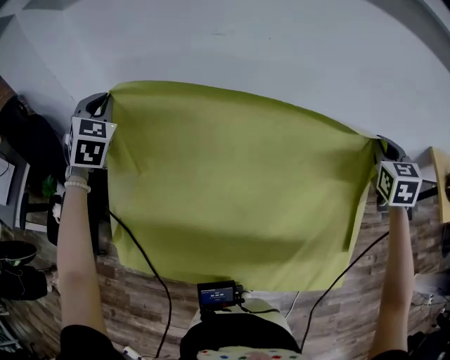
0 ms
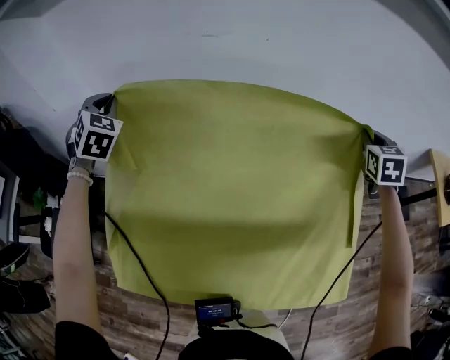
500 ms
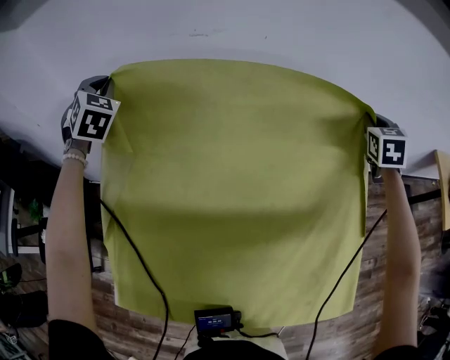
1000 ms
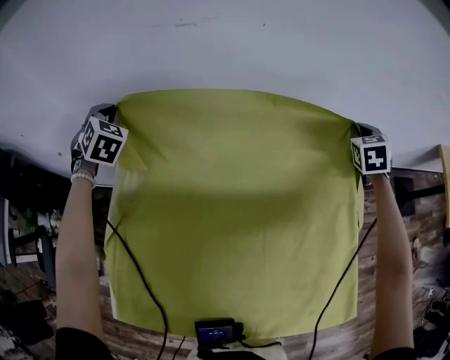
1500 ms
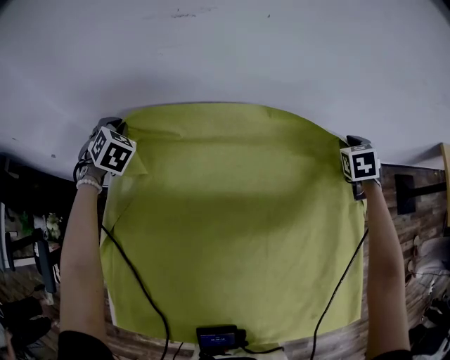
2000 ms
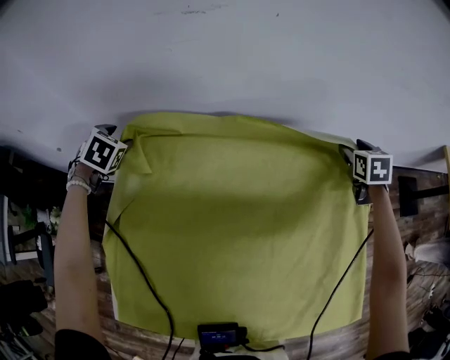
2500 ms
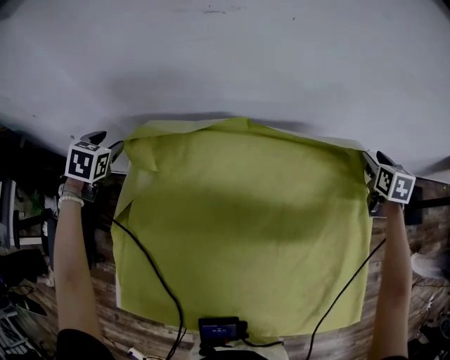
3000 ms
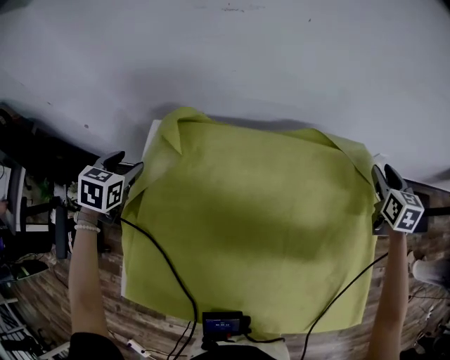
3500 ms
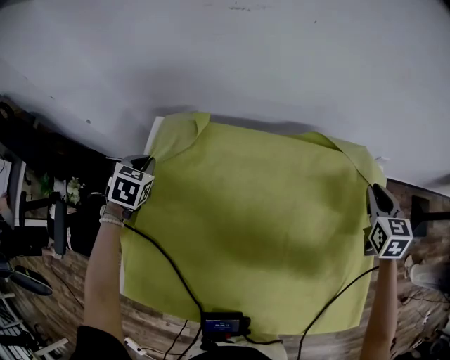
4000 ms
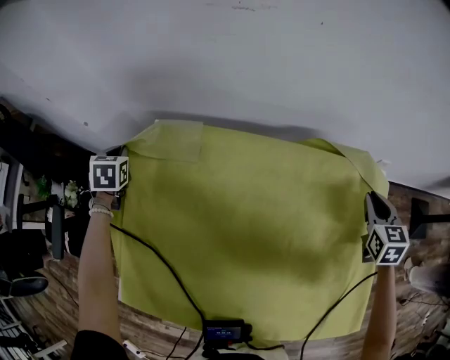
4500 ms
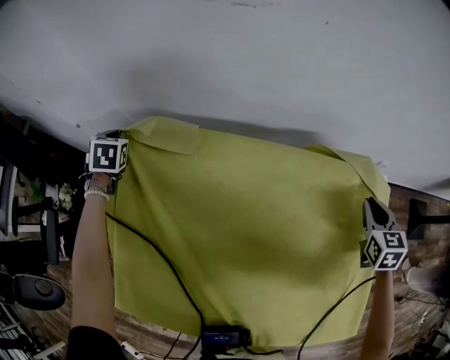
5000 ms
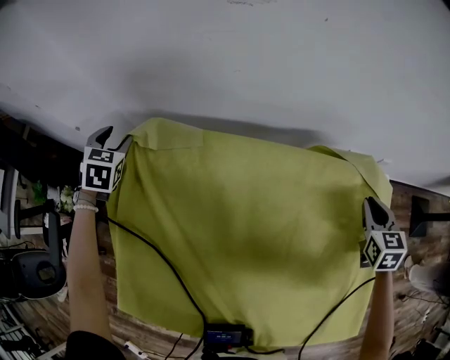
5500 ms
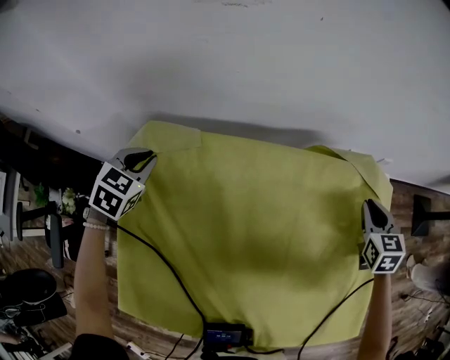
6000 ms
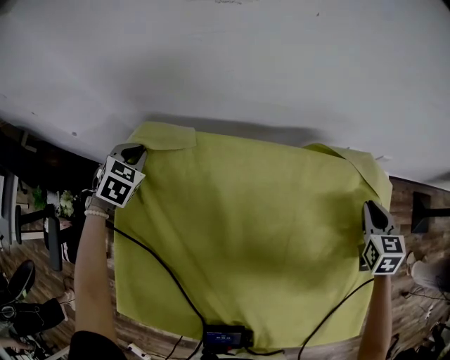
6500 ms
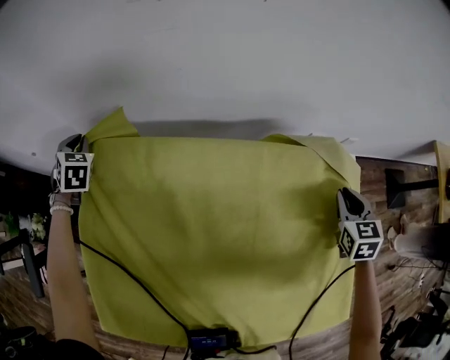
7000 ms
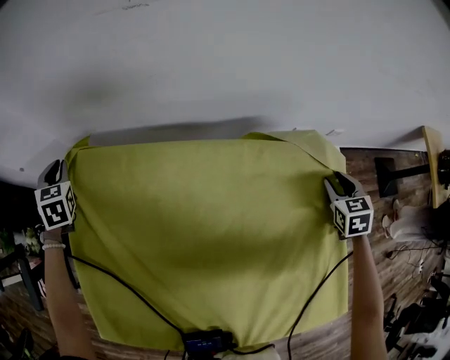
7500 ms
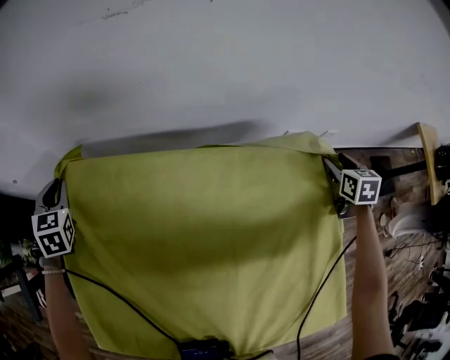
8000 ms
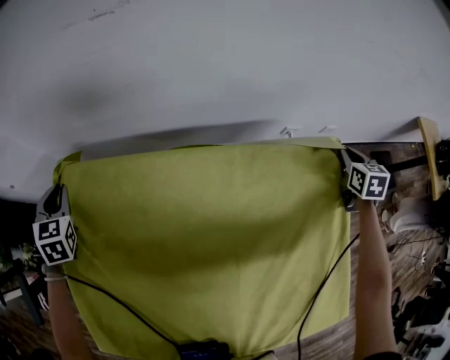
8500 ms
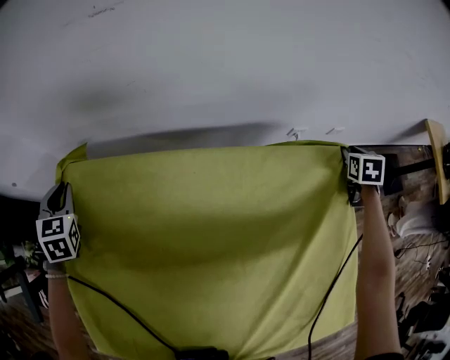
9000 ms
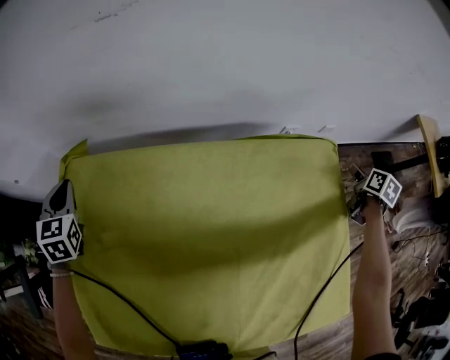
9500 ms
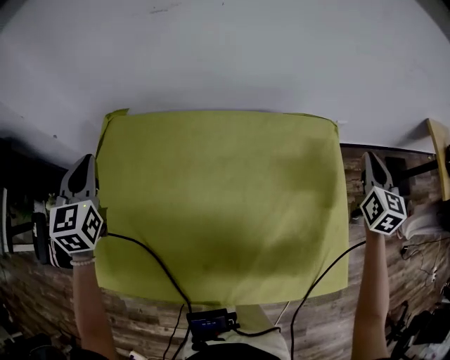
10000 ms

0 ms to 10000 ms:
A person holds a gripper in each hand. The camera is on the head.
0 ms to 2000 ms: Both grippers travel together downward and forward, roughly 30 cm. The right gripper swivels approximately 20 degrees; the left gripper swivels roughly 30 degrees.
2000 ms to 4000 ms: The two grippers go approximately 15 cm backward. The right gripper swivels some 20 degrees, and opens and closes again. Meanwhile the left gripper swivels roughly 30 degrees, and opens, then closes again.
4000 ms to 6000 ms: The left gripper travels to the left and back again, some 10 cm each way, and opens and closes again.
6000 ms to 8000 ms: The right gripper moves to the right and forward, about 15 cm, and opens up, while the left gripper is displaced to the left by roughly 5 cm, and changes its angle by about 30 degrees.
8000 ms to 10000 ms: The left gripper moves upward, backward and to the right, some 25 cm, and swivels approximately 20 degrees, while the right gripper travels upward and backward by roughly 20 cm, turns by about 30 degrees, and closes its fingers.

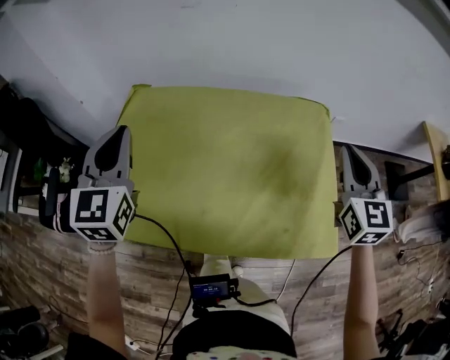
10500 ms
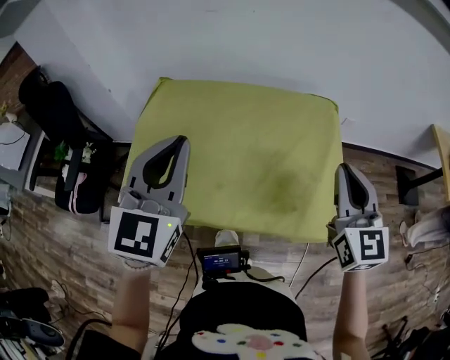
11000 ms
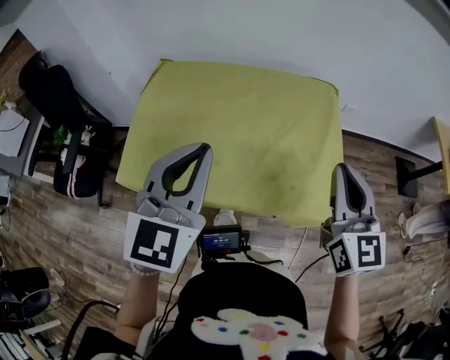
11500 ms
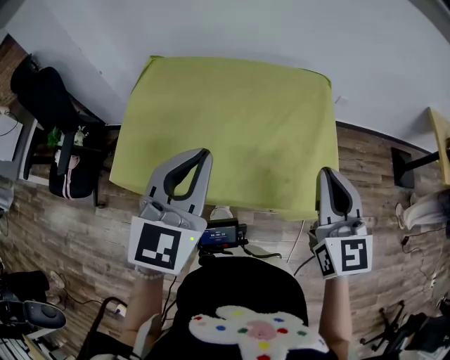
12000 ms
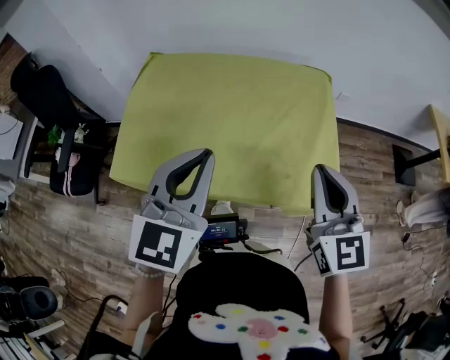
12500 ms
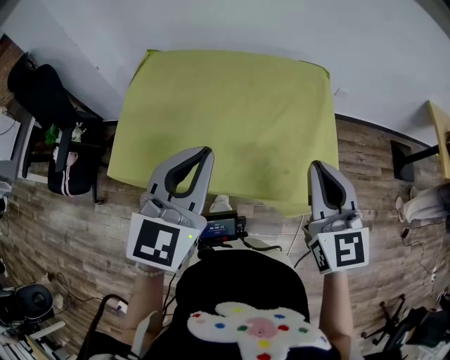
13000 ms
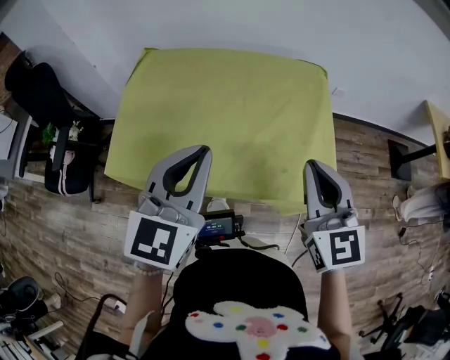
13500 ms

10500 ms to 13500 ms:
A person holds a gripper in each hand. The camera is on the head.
10500 ms to 12000 ms: The right gripper heads backward, covering approximately 20 cm. The left gripper shifts approximately 25 cm backward and to the right.
12000 ms to 13500 ms: The grippers stay close to where they were, moving slightly.

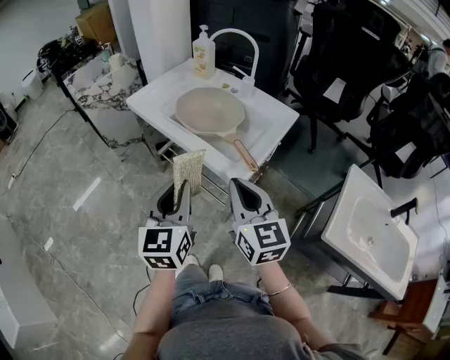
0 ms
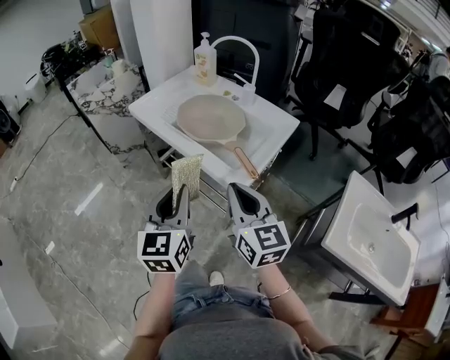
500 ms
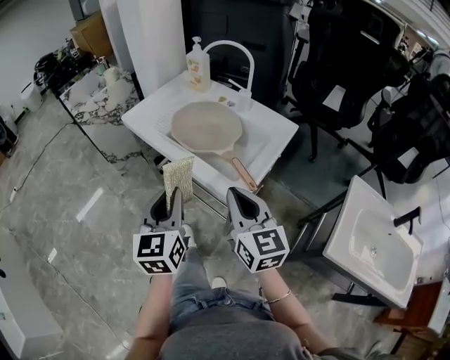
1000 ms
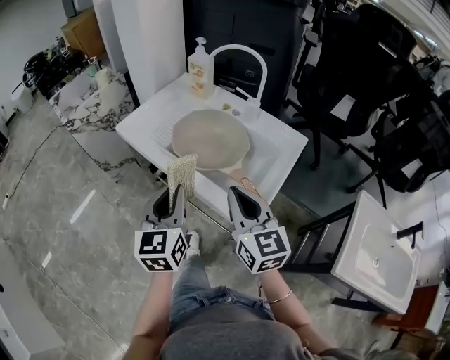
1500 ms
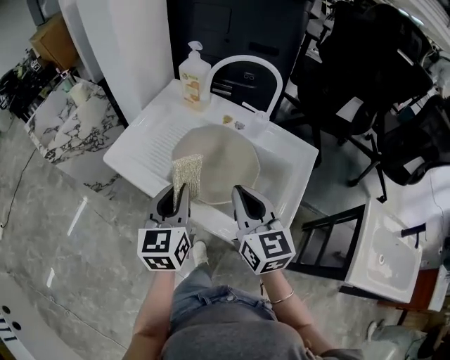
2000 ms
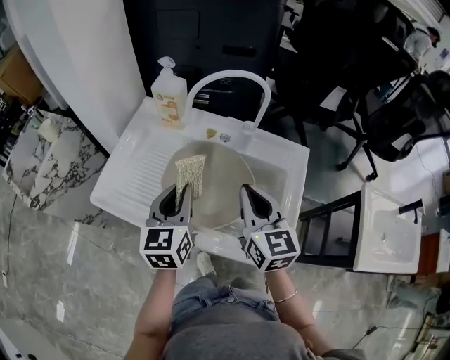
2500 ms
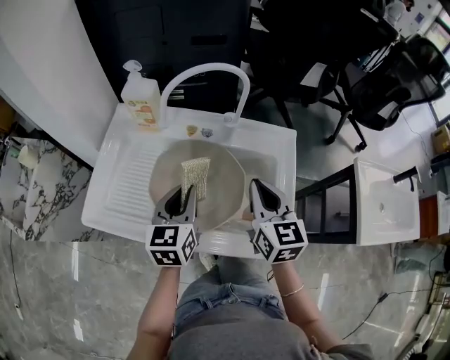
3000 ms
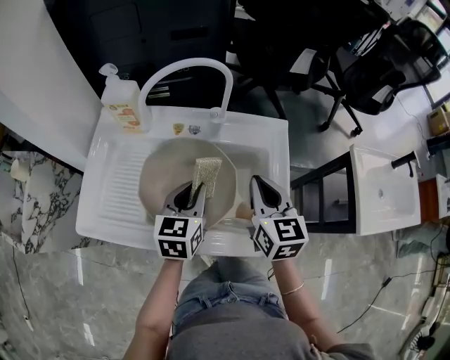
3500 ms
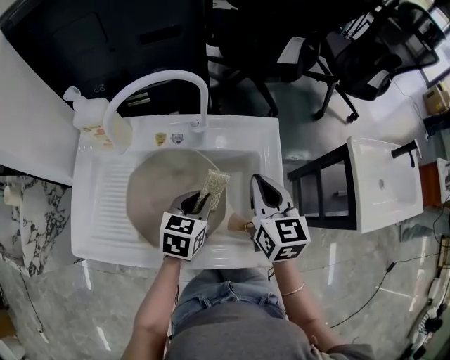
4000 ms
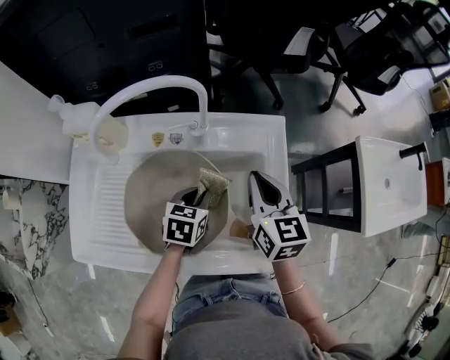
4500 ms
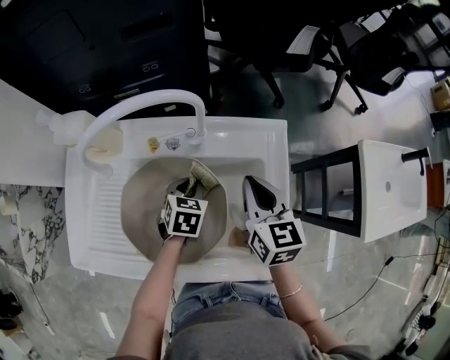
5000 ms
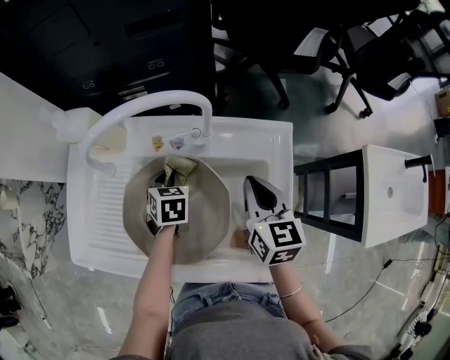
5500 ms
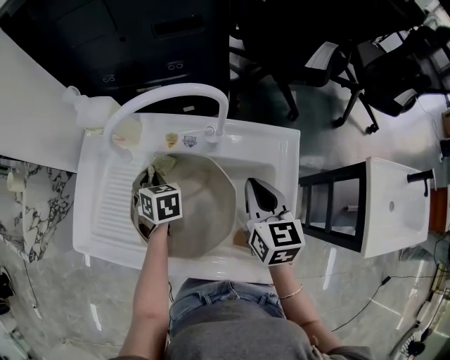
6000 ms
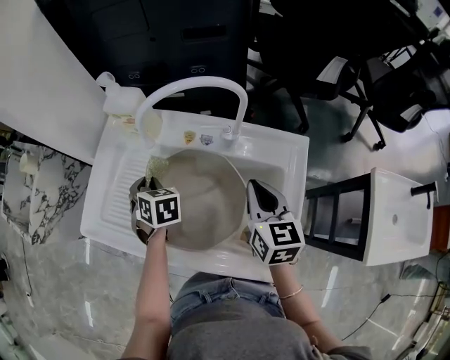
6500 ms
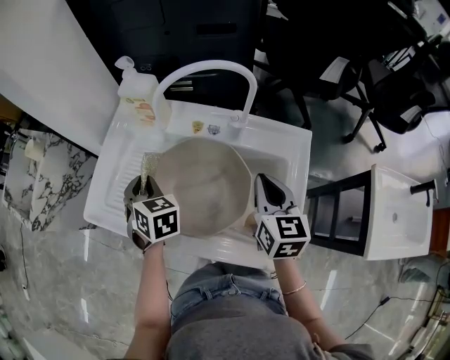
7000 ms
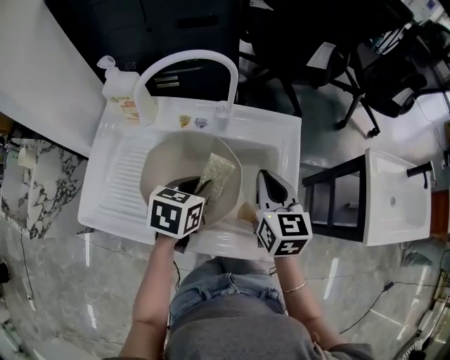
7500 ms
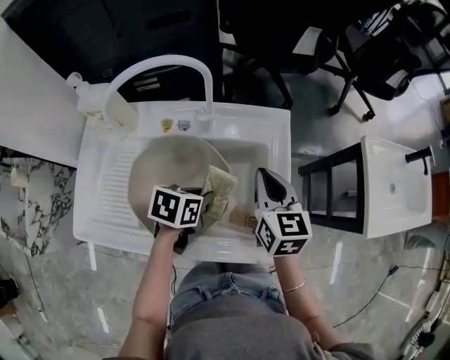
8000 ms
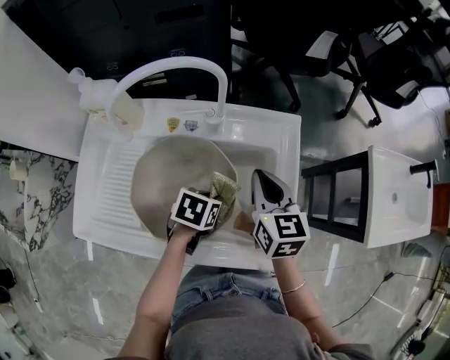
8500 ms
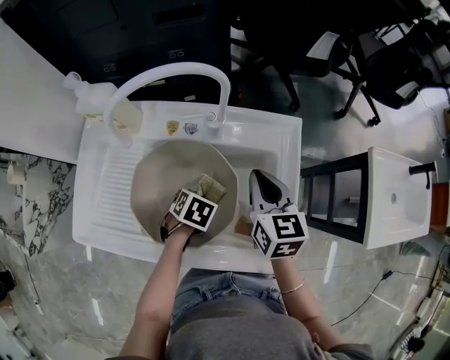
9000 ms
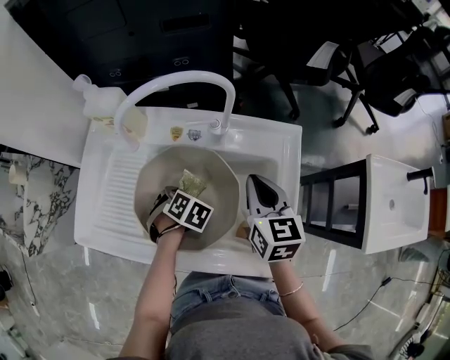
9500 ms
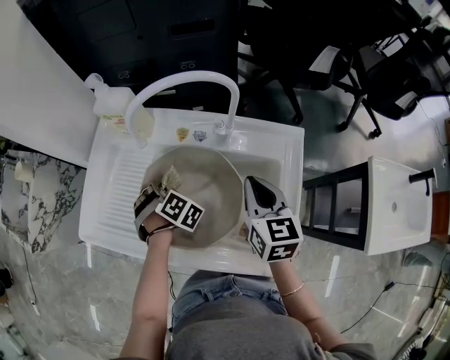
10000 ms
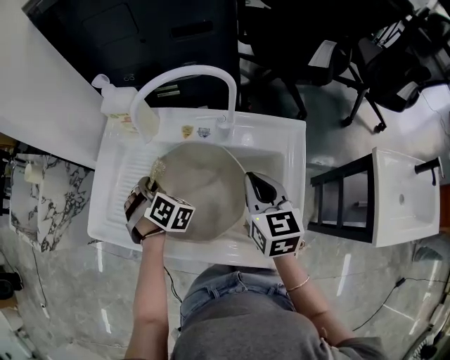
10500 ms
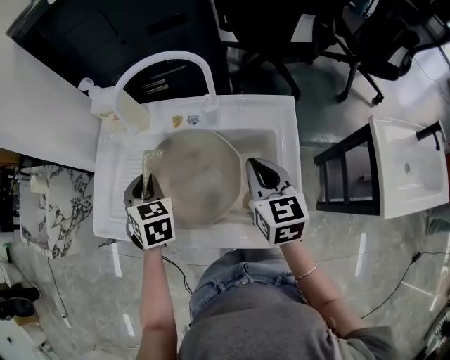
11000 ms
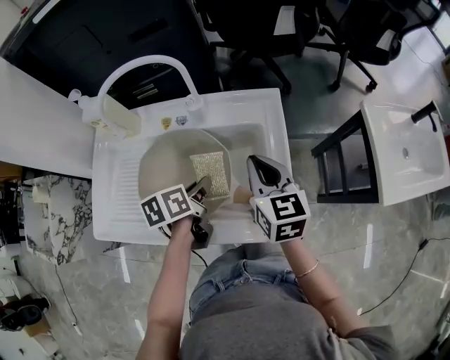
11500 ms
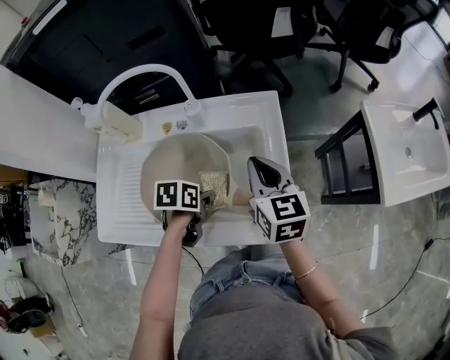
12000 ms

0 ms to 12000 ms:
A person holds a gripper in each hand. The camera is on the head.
0 ms to 2000 ms: The grippers both shift forward by about 30 cm.
2000 ms to 4000 ms: The left gripper ends up roughly 25 cm from where it was, and changes its angle by roughly 50 degrees; the right gripper ends up approximately 20 cm from where it was, and turns by some 40 degrees.
4000 ms to 6000 ms: The left gripper shifts by some 20 cm, and turns by some 50 degrees. The right gripper changes place by roughly 5 cm.
6000 ms to 8000 ms: The right gripper ends up approximately 5 cm from where it was. The left gripper travels upward and back again, some 10 cm each way, and rotates some 60 degrees.
8000 ms to 10000 ms: The left gripper ends up some 20 cm from where it was, and changes its angle by roughly 70 degrees. The right gripper shifts by some 5 cm.
10000 ms to 12000 ms: The right gripper ends up about 10 cm from where it was. Meanwhile the left gripper goes upward and returns, approximately 10 cm each way, and turns by about 70 degrees.

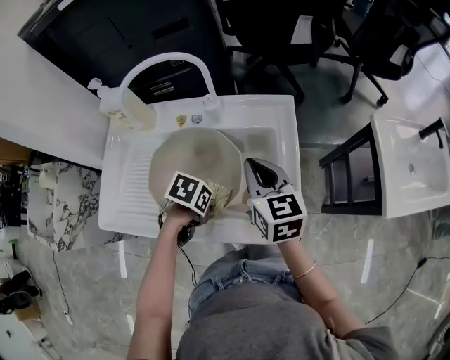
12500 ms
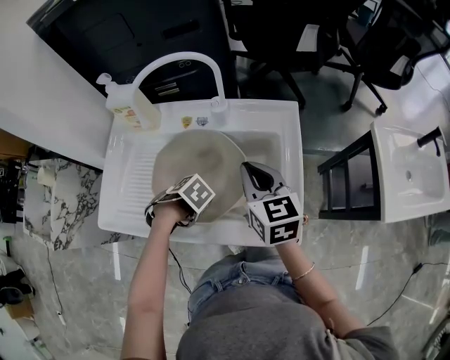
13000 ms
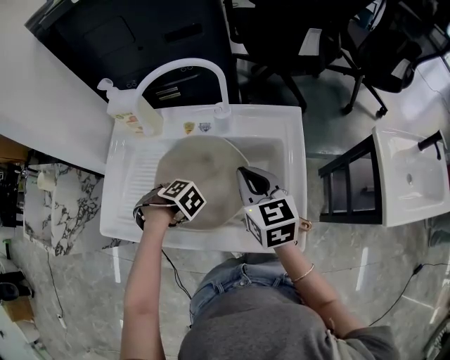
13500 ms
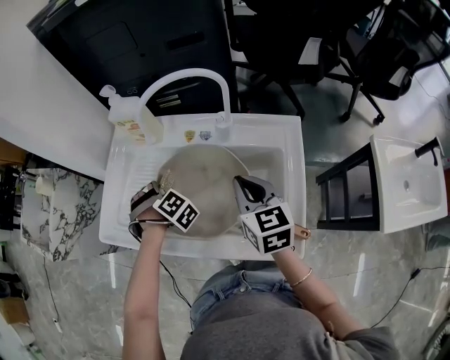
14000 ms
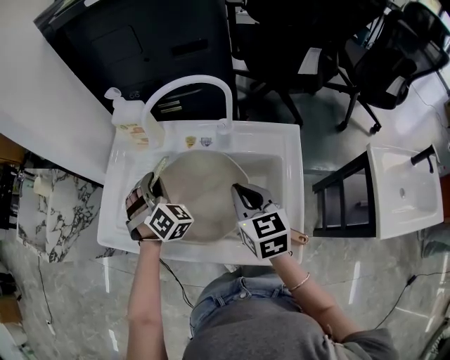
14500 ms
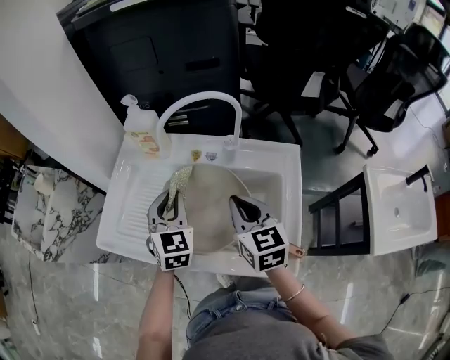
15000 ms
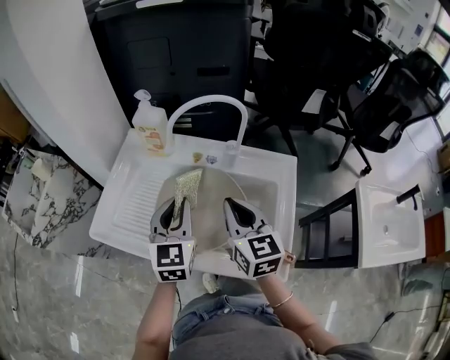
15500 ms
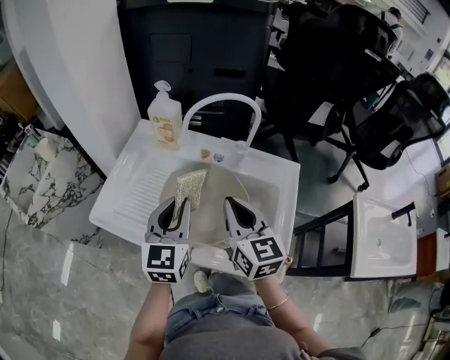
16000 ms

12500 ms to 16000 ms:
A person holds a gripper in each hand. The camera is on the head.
12500 ms to 14500 ms: The left gripper ends up approximately 25 cm from where it was, and tips its fingers upward by about 40 degrees; the right gripper shifts by about 5 cm.
14500 ms to 16000 ms: The right gripper moves upward and to the left, about 10 cm, while the left gripper shifts approximately 15 cm backward and upward, and twists about 60 degrees counterclockwise, seen from behind.
